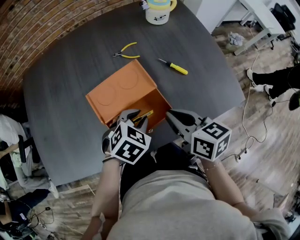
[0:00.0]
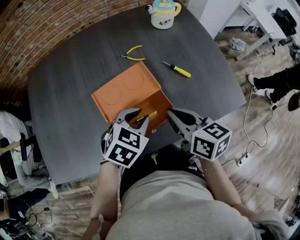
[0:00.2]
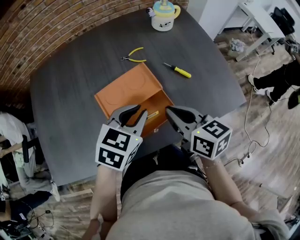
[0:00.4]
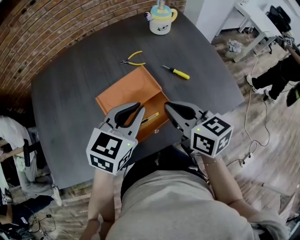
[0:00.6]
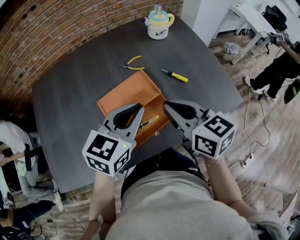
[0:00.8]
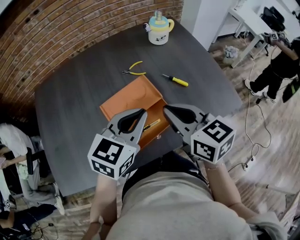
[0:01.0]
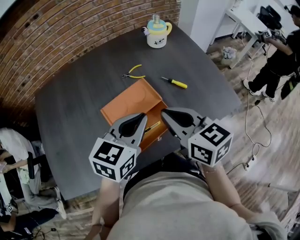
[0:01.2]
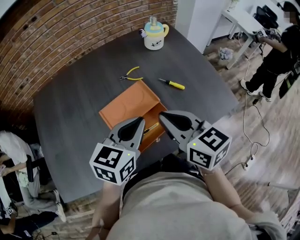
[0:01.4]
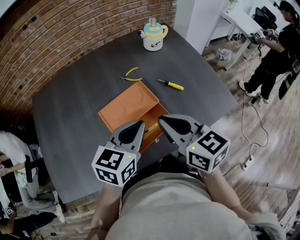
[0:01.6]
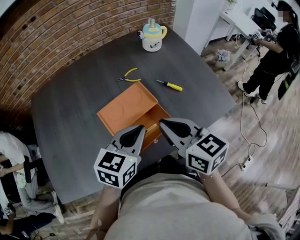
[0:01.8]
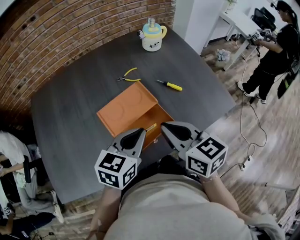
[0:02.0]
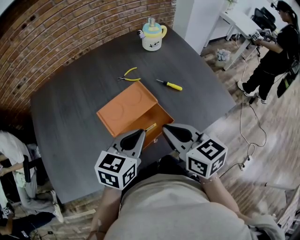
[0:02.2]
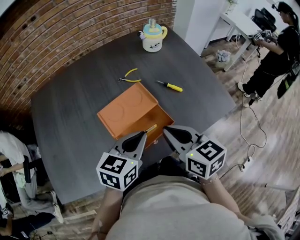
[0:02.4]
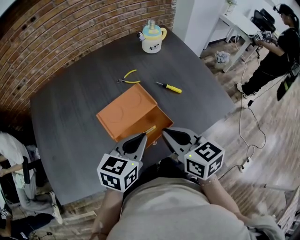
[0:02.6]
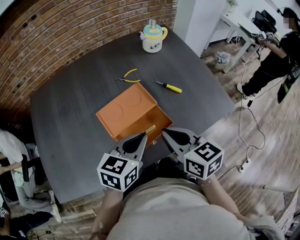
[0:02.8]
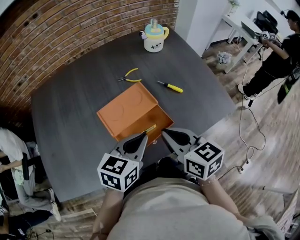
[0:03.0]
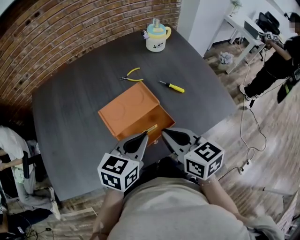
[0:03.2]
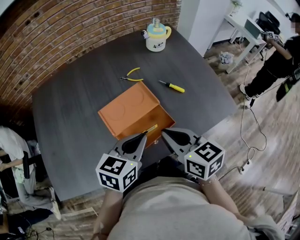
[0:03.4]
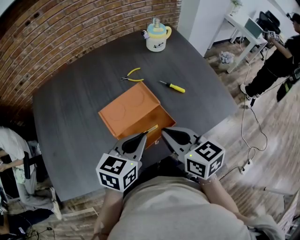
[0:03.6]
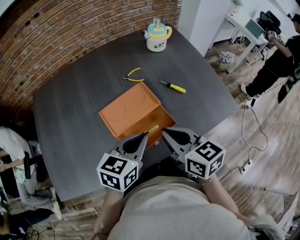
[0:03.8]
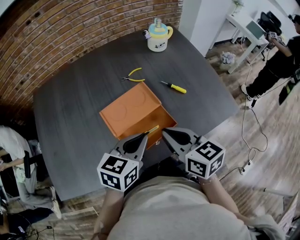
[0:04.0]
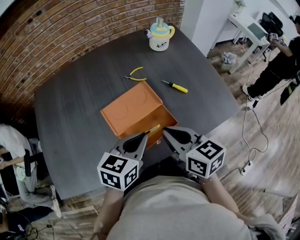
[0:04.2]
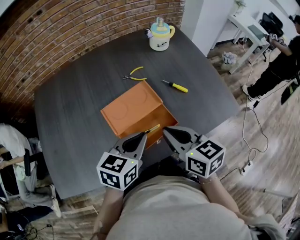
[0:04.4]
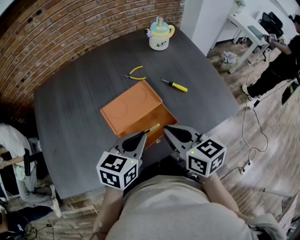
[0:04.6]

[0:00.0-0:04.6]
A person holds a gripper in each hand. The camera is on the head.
0:00.0 to 0:01.6: The left gripper shifts some 15 cm upward, tilts its fingers about 30 degrees upward, and closes up. The right gripper moves upward and to the left, approximately 10 cm, and turns by approximately 20 degrees.
0:01.6 to 0:03.0: The right gripper changes place by about 5 cm.
0:03.0 to 0:04.6: There are only small adjustments of the grippers.

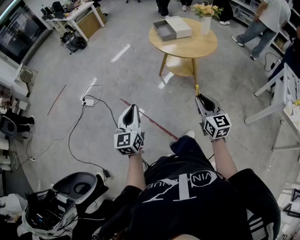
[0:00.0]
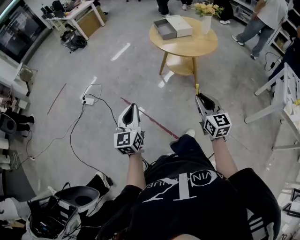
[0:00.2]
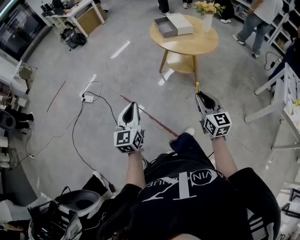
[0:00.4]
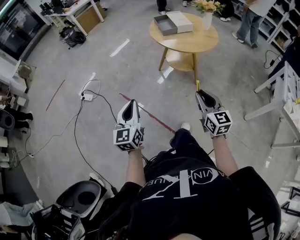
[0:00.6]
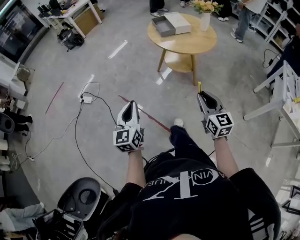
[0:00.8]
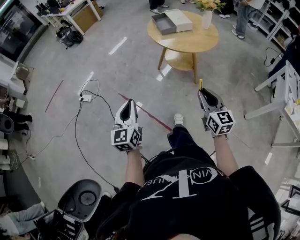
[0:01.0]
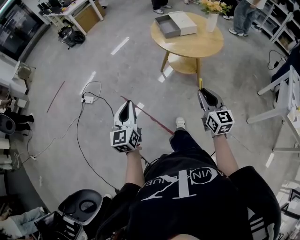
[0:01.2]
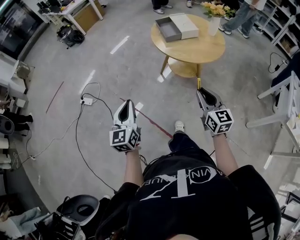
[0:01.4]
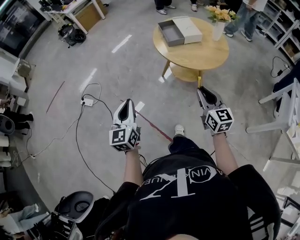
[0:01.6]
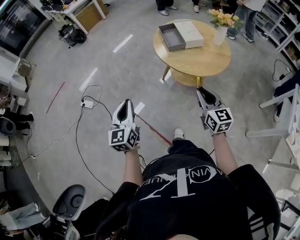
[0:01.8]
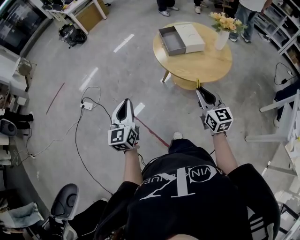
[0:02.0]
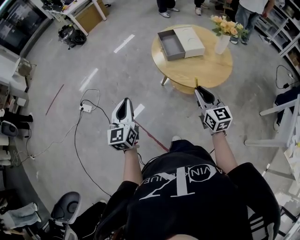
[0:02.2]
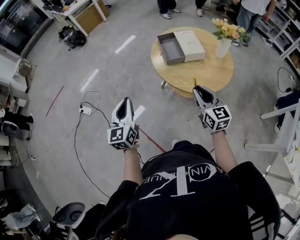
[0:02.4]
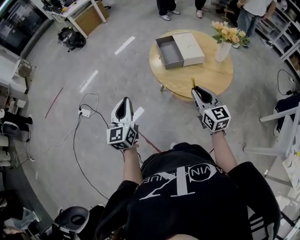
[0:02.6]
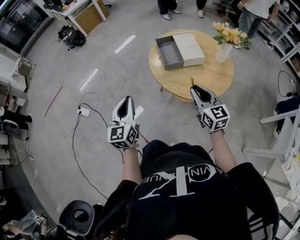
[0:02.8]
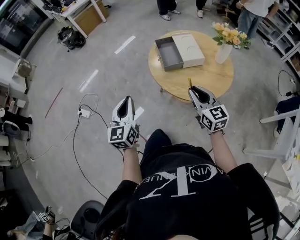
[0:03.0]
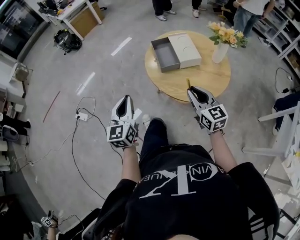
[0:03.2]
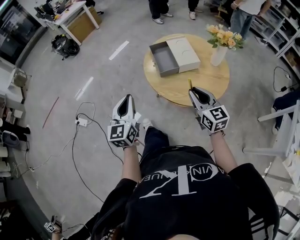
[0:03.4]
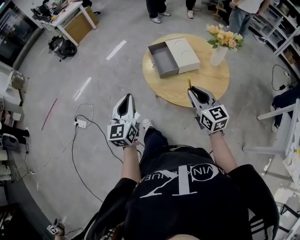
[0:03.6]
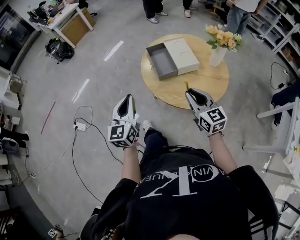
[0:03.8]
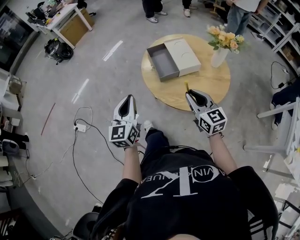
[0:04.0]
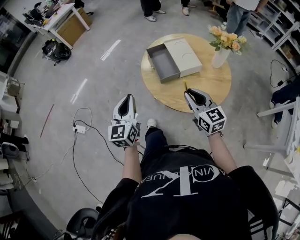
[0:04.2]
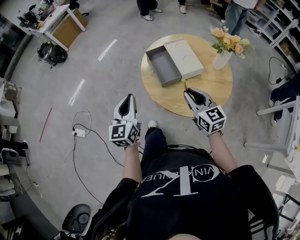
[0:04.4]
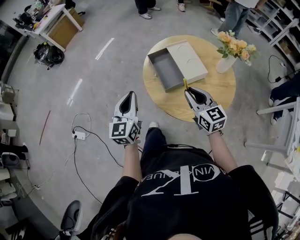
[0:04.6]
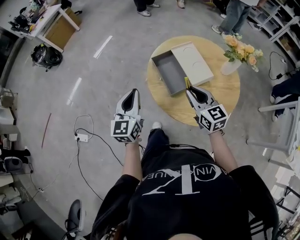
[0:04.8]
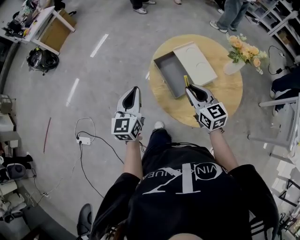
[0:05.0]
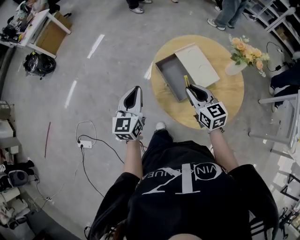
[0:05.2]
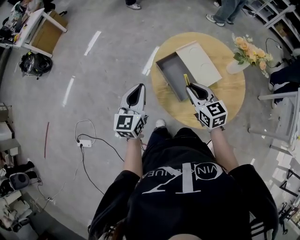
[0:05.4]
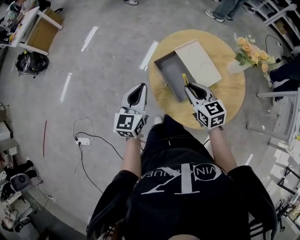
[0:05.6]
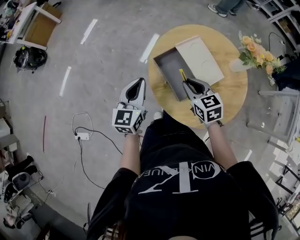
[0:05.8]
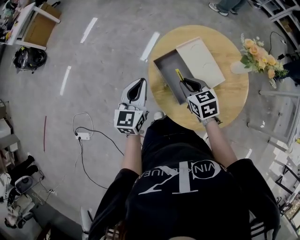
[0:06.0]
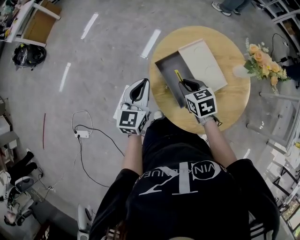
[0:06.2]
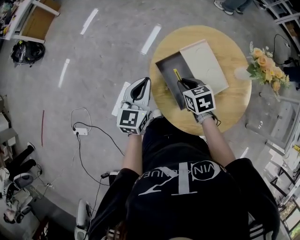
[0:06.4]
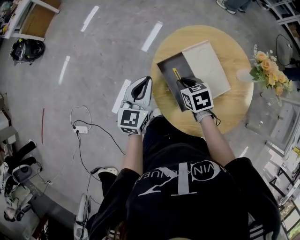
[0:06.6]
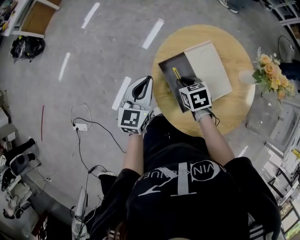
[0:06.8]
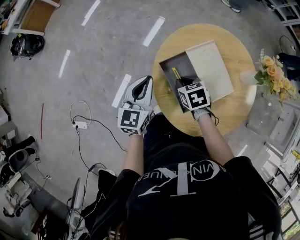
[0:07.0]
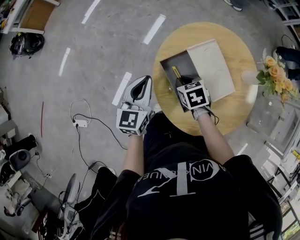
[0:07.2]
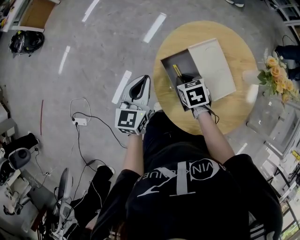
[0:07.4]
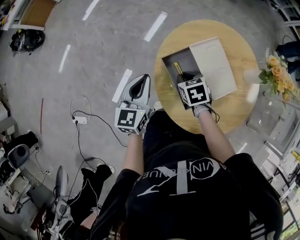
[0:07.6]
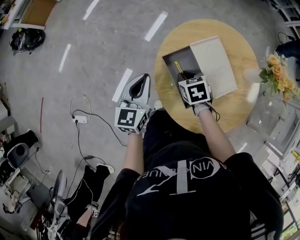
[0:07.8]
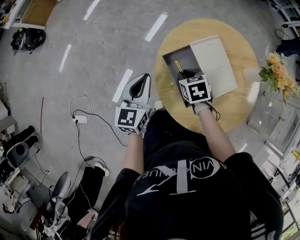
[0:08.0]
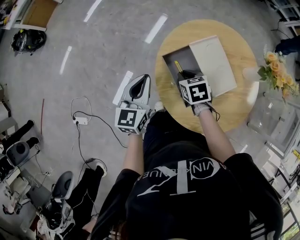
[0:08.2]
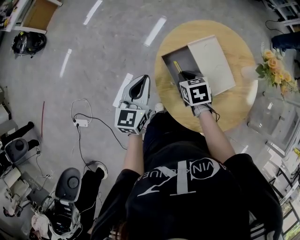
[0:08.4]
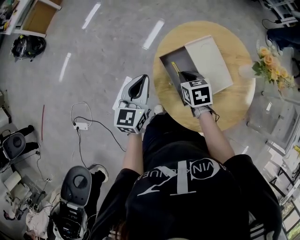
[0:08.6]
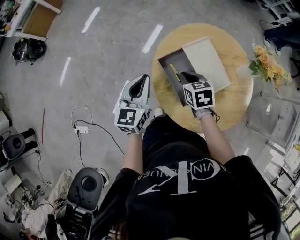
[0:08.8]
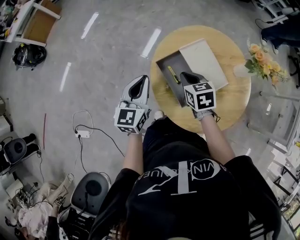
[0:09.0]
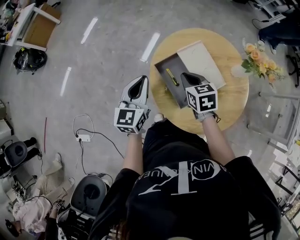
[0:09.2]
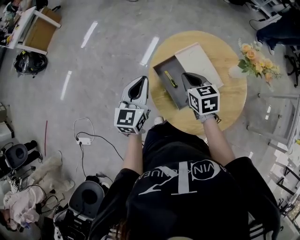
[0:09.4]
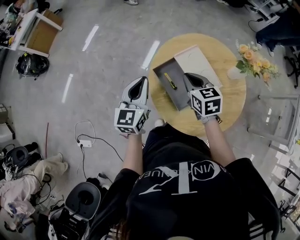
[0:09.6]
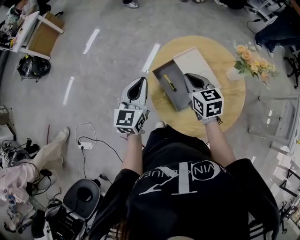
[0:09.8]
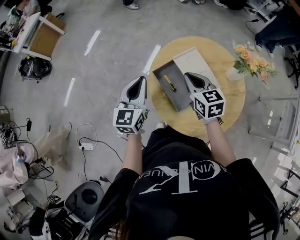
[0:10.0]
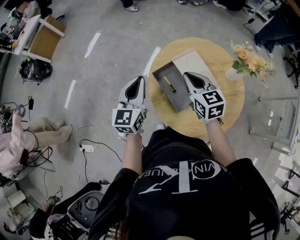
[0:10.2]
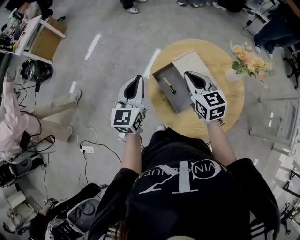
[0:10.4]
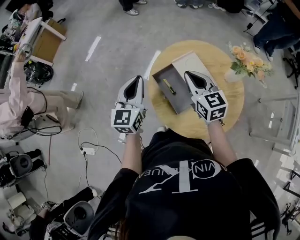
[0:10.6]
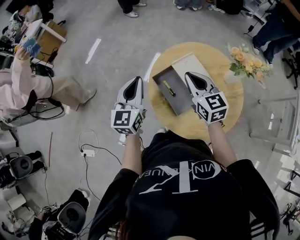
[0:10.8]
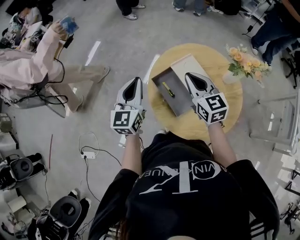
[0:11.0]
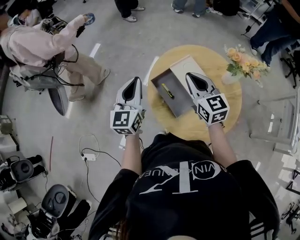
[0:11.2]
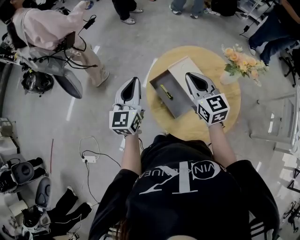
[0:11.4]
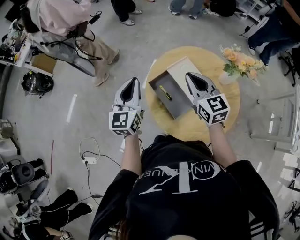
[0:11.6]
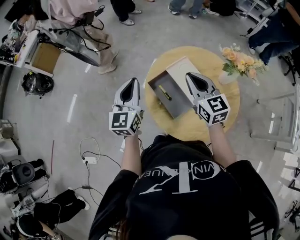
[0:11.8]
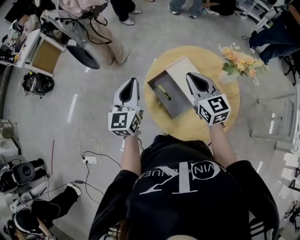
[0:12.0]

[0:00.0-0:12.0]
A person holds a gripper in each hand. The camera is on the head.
0:00.0 to 0:01.6: The two grippers go about 15 cm forward.
0:01.6 to 0:03.0: The left gripper moves forward and to the right, approximately 20 cm. The right gripper shifts about 20 cm forward.
0:03.0 to 0:04.4: The grippers both shift forward by about 15 cm.
0:04.4 to 0:06.0: The left gripper heads forward, covering roughly 25 cm, and turns by roughly 20 degrees; the right gripper is displaced forward and downward by some 20 cm, and tilts its fingers some 30 degrees downward.
0:06.0 to 0:07.6: The right gripper shifts approximately 10 cm downward.
0:07.6 to 0:09.0: The right gripper is displaced upward by approximately 10 cm.
0:09.0 to 0:10.4: The right gripper heads upward, covering some 10 cm, and changes its angle by approximately 30 degrees; the left gripper travels upward by about 5 cm.
0:10.4 to 0:12.0: The right gripper shifts by roughly 5 cm.

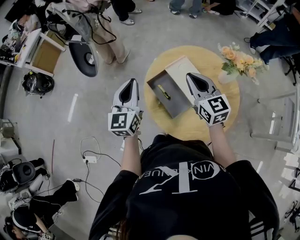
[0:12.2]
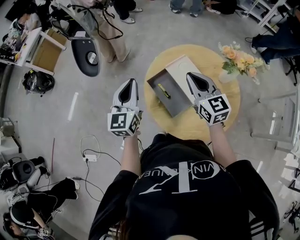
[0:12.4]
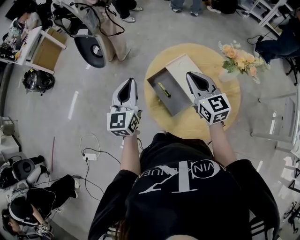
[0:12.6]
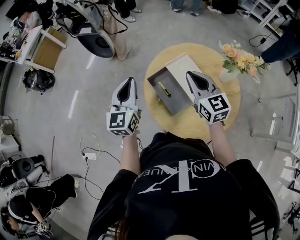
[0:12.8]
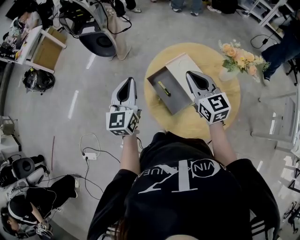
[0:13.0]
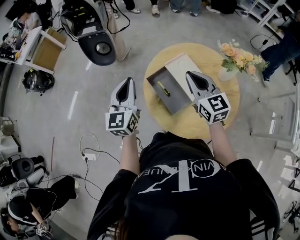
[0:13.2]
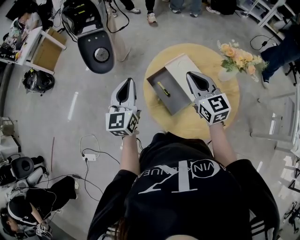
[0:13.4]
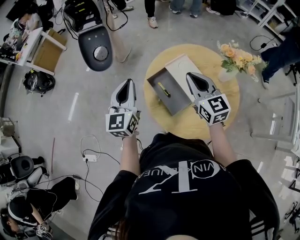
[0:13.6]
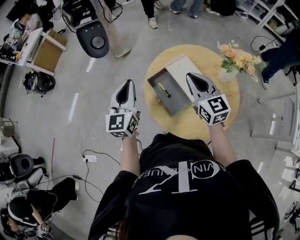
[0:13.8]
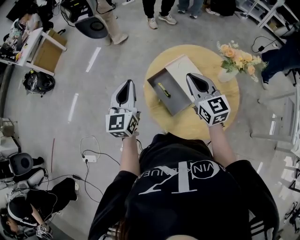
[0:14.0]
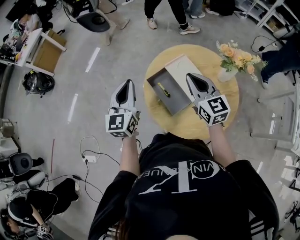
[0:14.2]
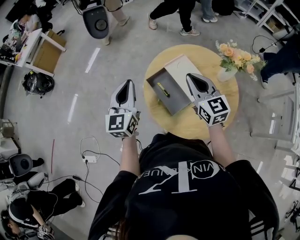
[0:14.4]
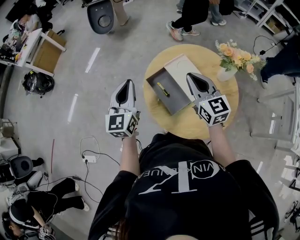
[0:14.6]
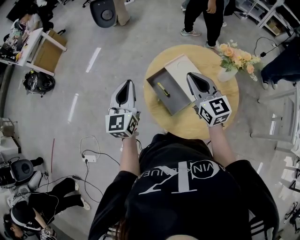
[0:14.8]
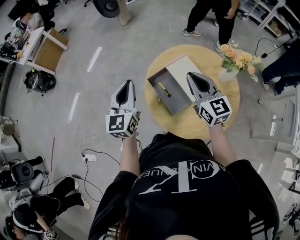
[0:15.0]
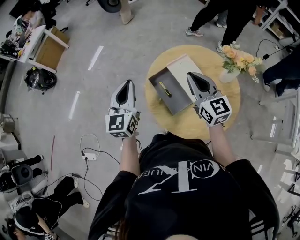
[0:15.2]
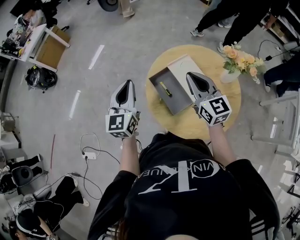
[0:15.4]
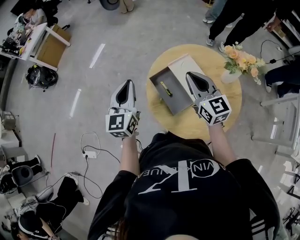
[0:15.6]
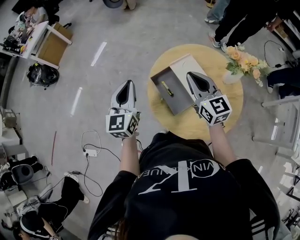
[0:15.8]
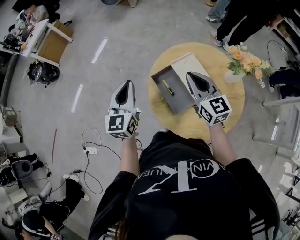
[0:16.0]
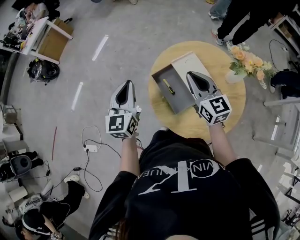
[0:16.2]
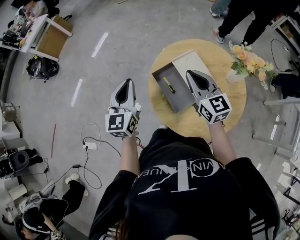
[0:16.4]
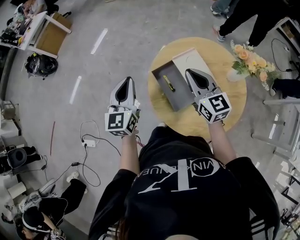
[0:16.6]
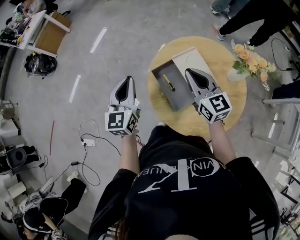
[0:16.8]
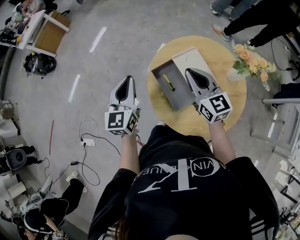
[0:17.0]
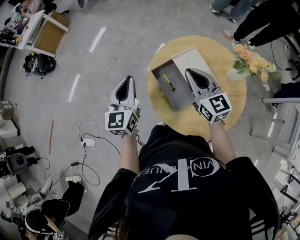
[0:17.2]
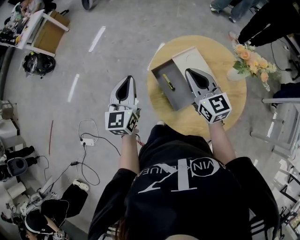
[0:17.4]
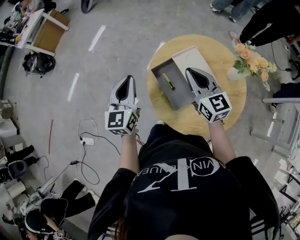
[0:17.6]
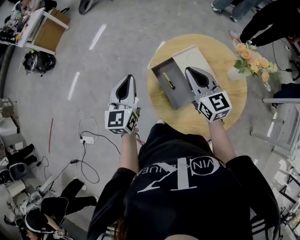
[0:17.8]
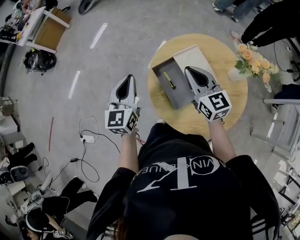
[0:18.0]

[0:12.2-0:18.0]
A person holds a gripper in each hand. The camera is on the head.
0:12.2 to 0:15.0: The grippers make only small movements.
0:15.0 to 0:16.6: The right gripper shifts by roughly 5 cm.
0:16.6 to 0:18.0: The grippers move only a little.

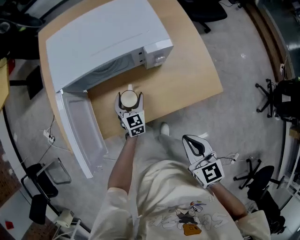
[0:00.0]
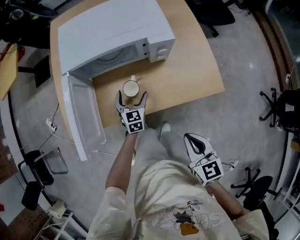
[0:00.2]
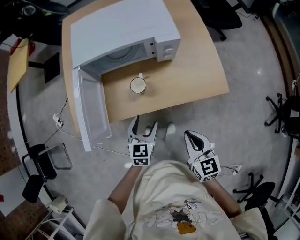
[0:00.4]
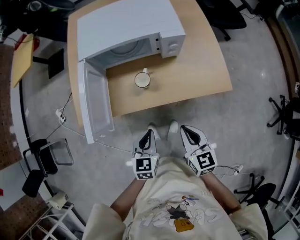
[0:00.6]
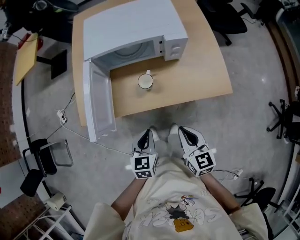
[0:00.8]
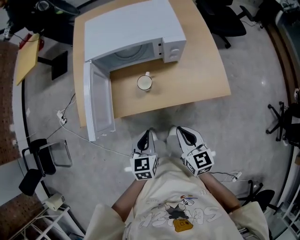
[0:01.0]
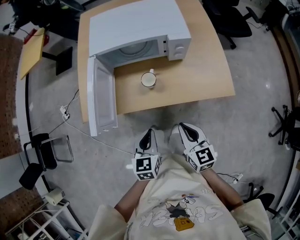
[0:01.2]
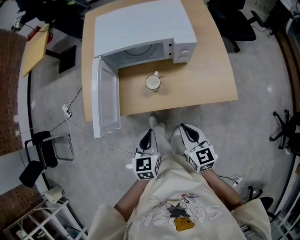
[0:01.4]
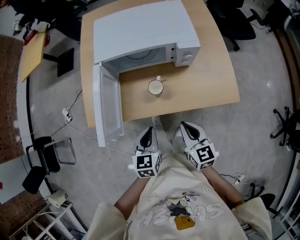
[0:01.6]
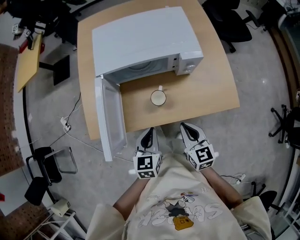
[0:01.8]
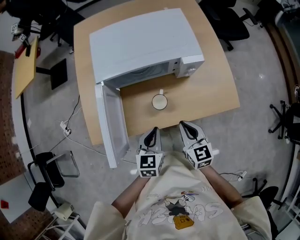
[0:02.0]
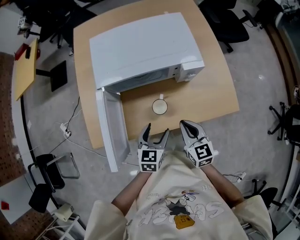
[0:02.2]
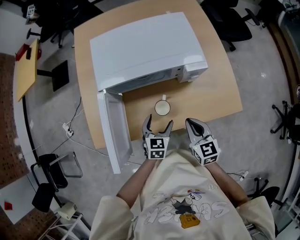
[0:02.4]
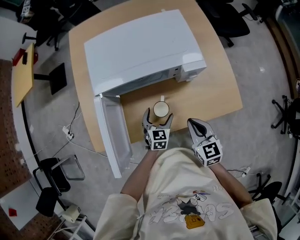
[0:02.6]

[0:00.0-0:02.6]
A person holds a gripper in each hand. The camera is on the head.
0:00.0 to 0:01.2: The right gripper ends up about 5 cm from where it was; the left gripper moves backward and upward, about 30 cm, and closes its fingers.
0:01.2 to 0:02.6: The right gripper moves forward, roughly 15 cm. The left gripper goes approximately 25 cm forward and downward, and opens up.
